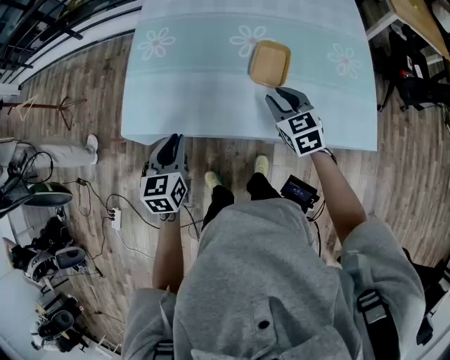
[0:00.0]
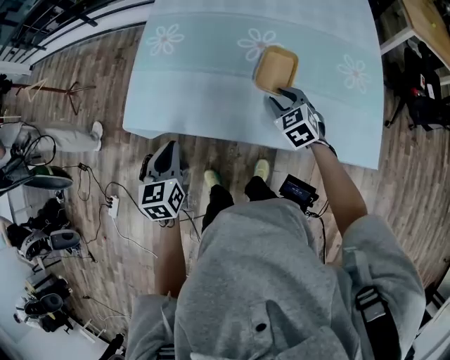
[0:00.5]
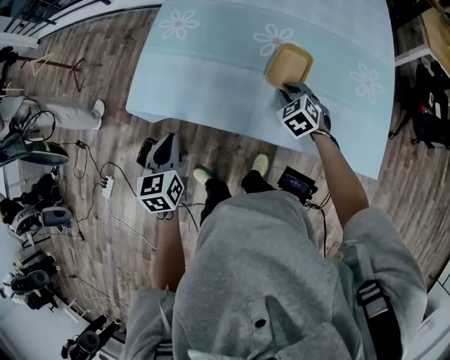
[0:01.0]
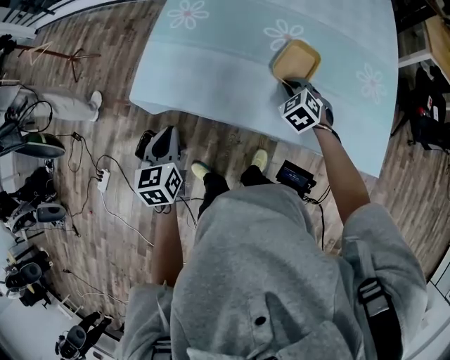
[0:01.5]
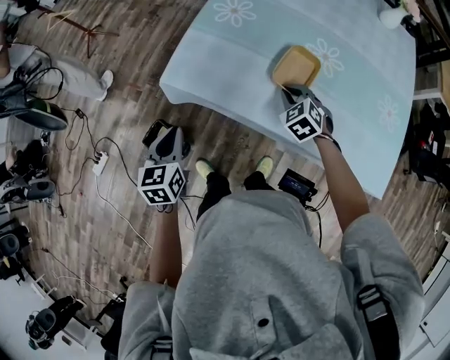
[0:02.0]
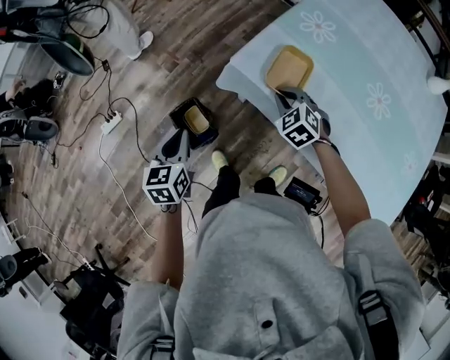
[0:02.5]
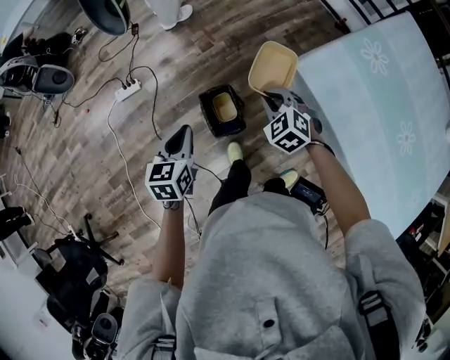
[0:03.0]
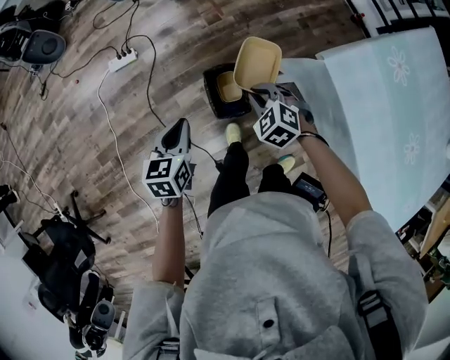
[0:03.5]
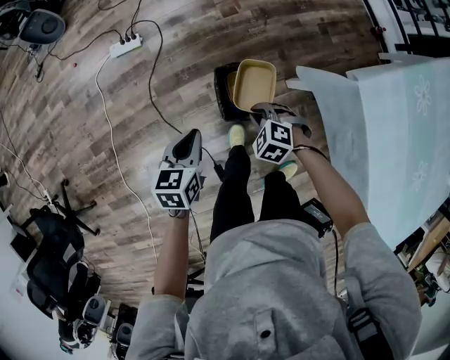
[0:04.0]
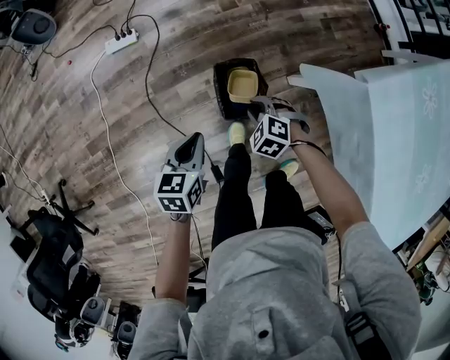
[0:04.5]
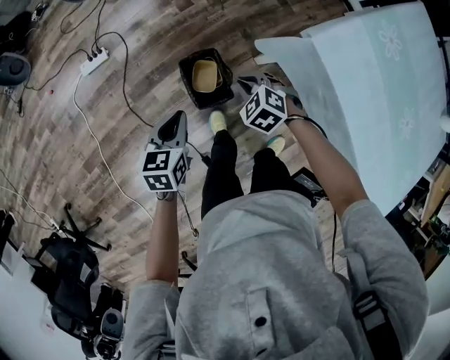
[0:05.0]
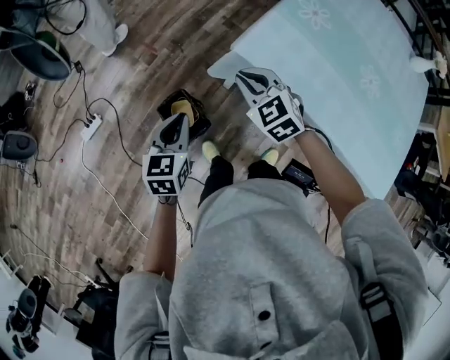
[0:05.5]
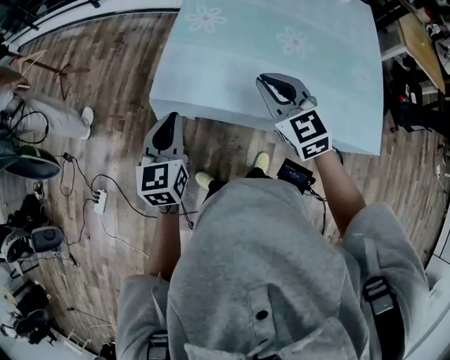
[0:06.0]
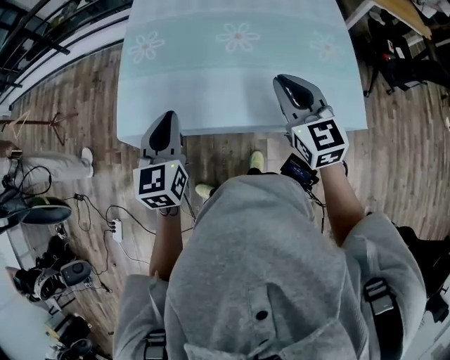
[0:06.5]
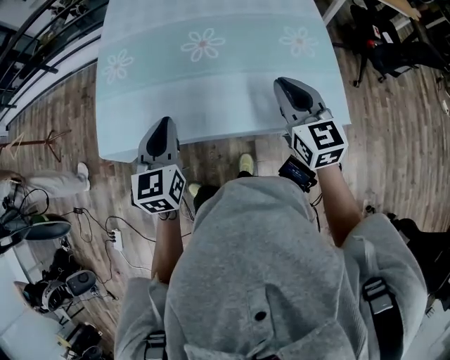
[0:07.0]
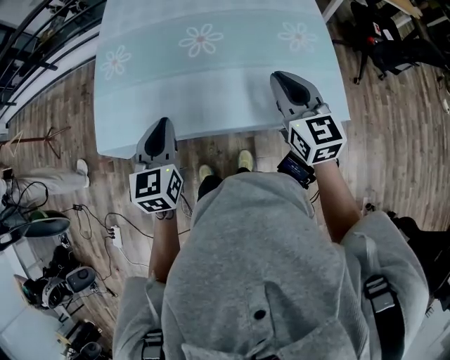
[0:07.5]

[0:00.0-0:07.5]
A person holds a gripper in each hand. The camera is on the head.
0:00.0 to 0:02.0: The left gripper moves to the left, approximately 15 cm, and swivels some 20 degrees; the right gripper travels to the left, forward and downward by roughly 15 cm, and rotates approximately 40 degrees.
0:02.0 to 0:04.0: The right gripper changes place by roughly 60 cm, and turns by about 70 degrees, while the left gripper moves some 40 cm, and changes its angle by approximately 40 degrees.
0:04.0 to 0:05.5: The left gripper ends up about 25 cm from where it was, and swivels approximately 30 degrees. Meanwhile the right gripper is displaced upward by some 25 cm, and changes its angle by roughly 50 degrees.
0:05.5 to 0:07.5: The two grippers travel together, roughly 50 cm. The right gripper changes its angle by roughly 70 degrees. The left gripper changes its angle by about 40 degrees.

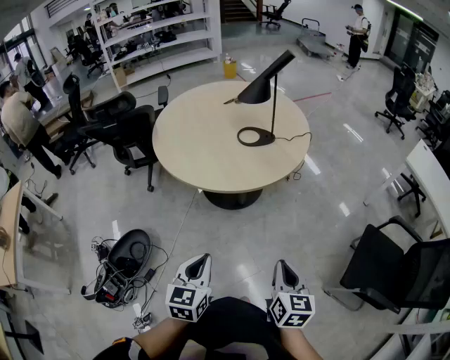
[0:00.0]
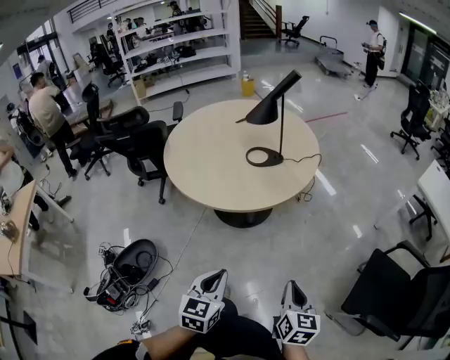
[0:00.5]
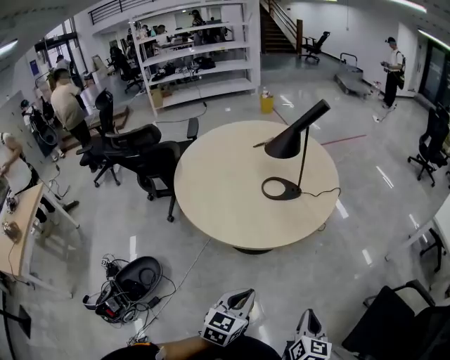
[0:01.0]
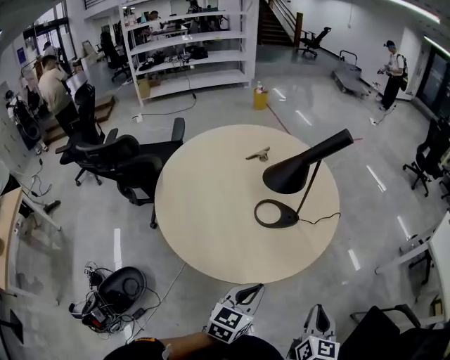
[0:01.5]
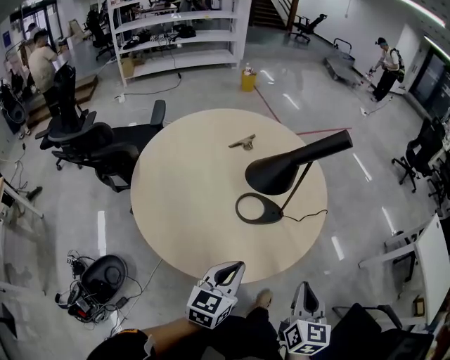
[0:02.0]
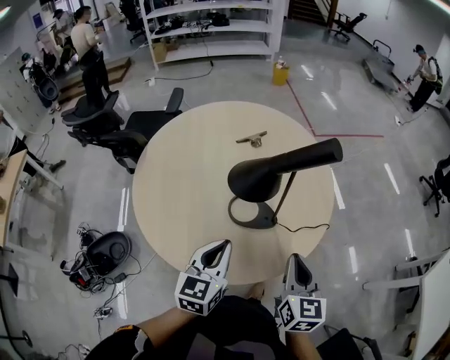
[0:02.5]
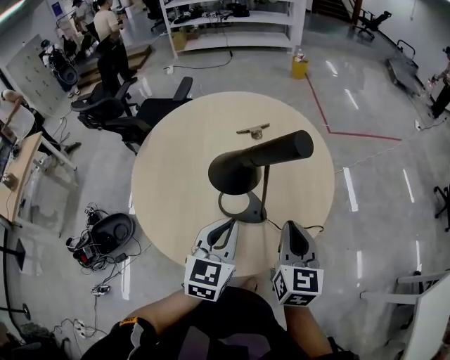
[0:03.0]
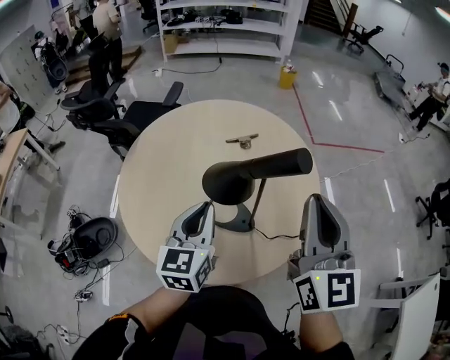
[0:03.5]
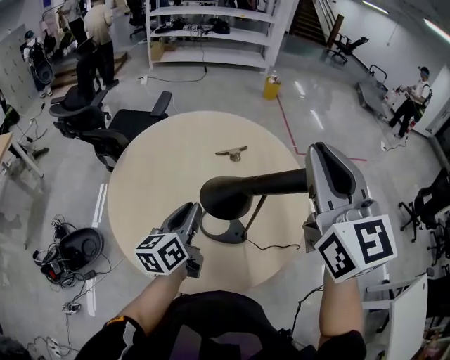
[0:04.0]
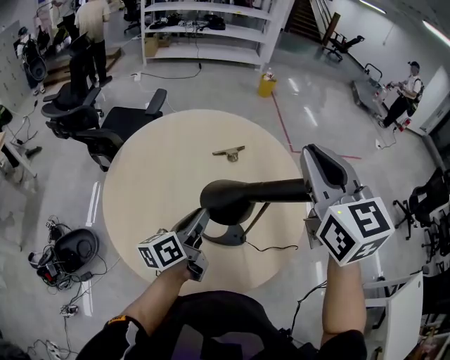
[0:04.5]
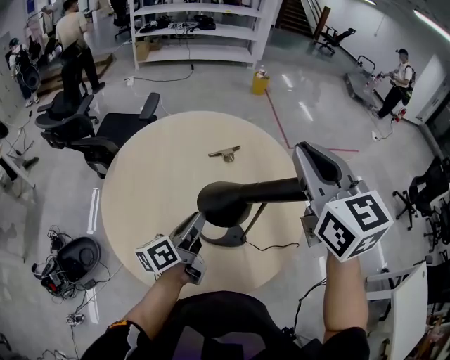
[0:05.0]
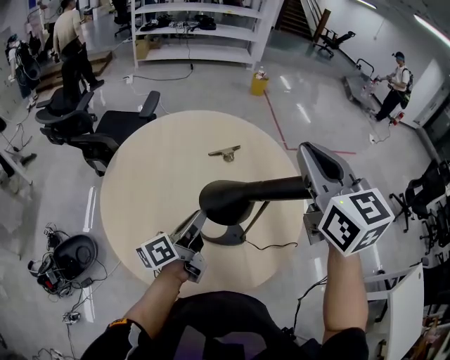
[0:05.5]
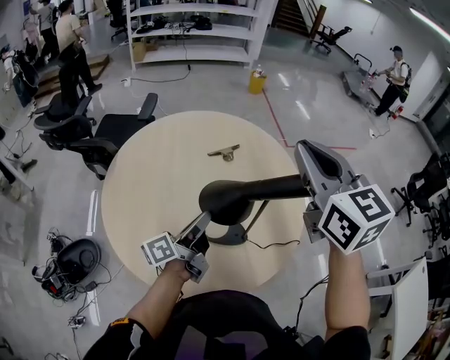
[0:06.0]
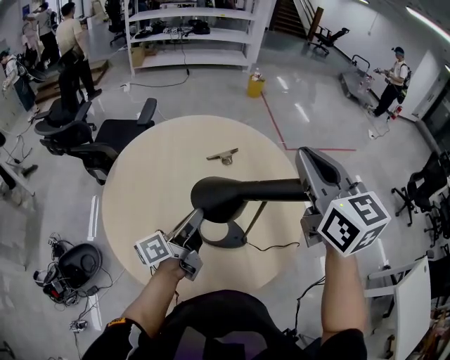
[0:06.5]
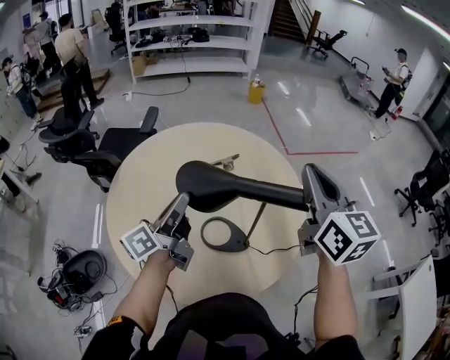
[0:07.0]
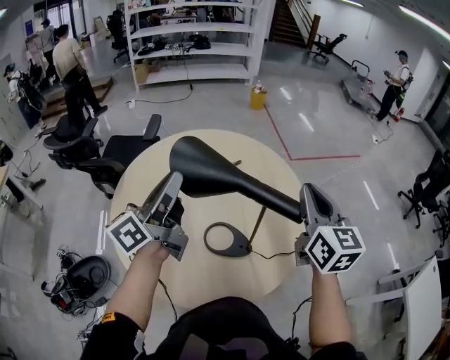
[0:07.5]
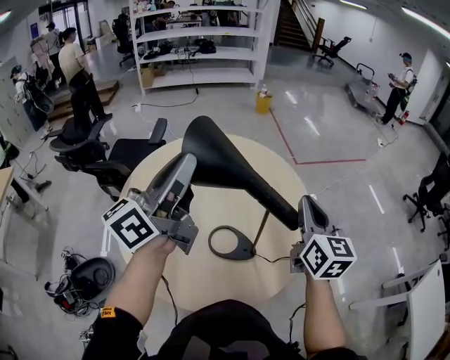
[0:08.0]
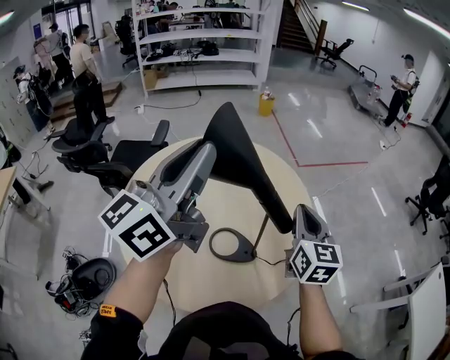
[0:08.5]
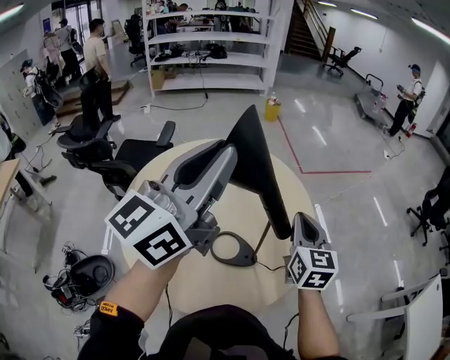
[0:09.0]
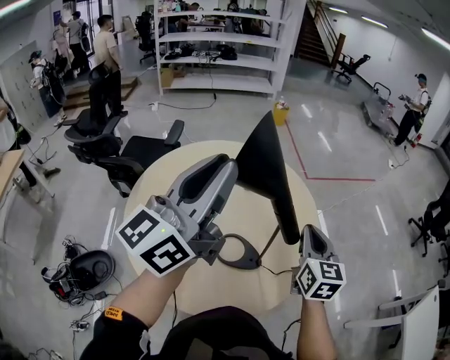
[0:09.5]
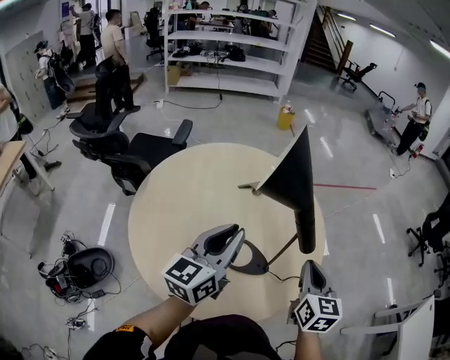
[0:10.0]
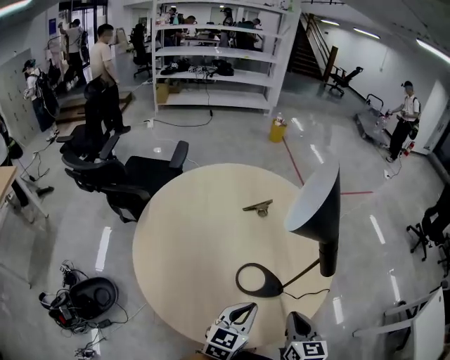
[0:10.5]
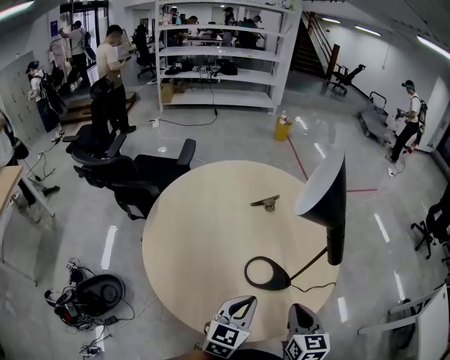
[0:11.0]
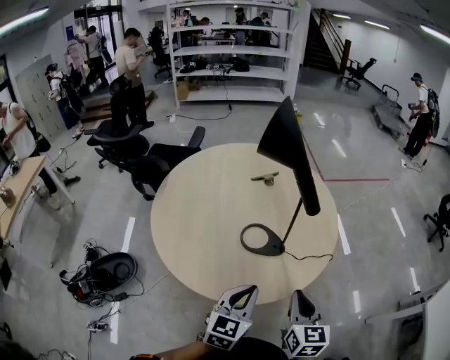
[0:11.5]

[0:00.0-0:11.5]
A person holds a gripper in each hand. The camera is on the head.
0:00.0 to 0:02.0: The pair of grippers is taken forward, some 50 cm.
0:02.0 to 0:04.0: The left gripper shifts by roughly 25 cm, and swivels roughly 40 degrees, while the right gripper heads upward, covering roughly 30 cm, and swivels roughly 50 degrees.
0:04.0 to 0:06.0: The left gripper moves about 5 cm, and swivels approximately 40 degrees, while the right gripper heads forward, covering approximately 5 cm.
0:06.0 to 0:07.5: The left gripper heads upward, covering about 20 cm, and turns by some 30 degrees; the right gripper moves to the right and downward, roughly 10 cm.
0:07.5 to 0:09.5: The right gripper is displaced downward by approximately 10 cm, while the left gripper goes about 15 cm upward and to the right, and changes its angle by about 30 degrees.
0:09.5 to 0:11.5: The right gripper goes approximately 30 cm backward. Meanwhile the left gripper shifts some 40 cm downward and backward, and tips its fingers downward by approximately 40 degrees.

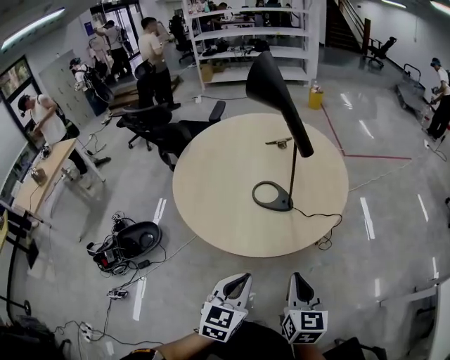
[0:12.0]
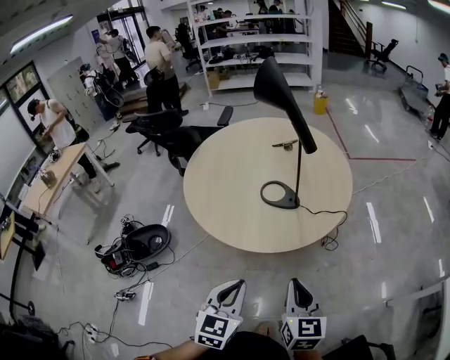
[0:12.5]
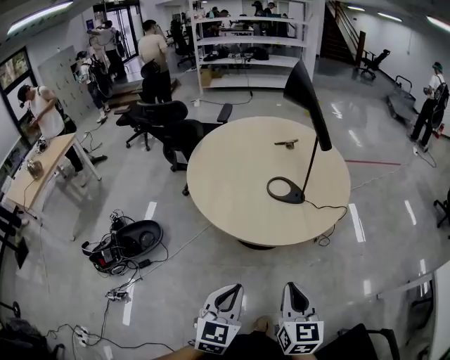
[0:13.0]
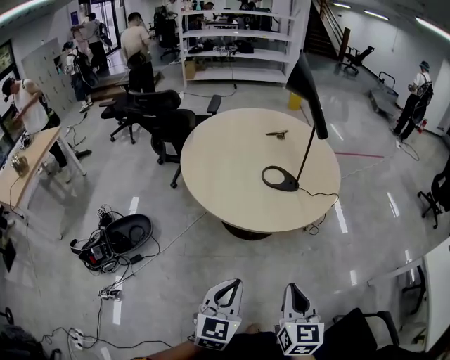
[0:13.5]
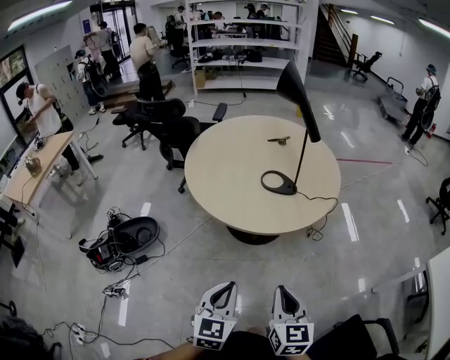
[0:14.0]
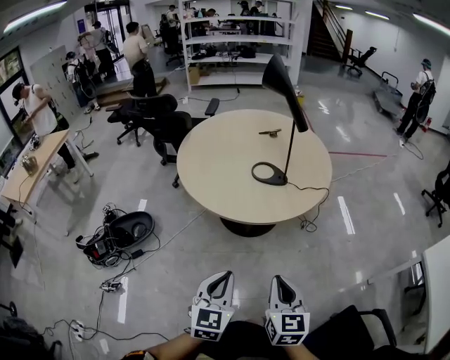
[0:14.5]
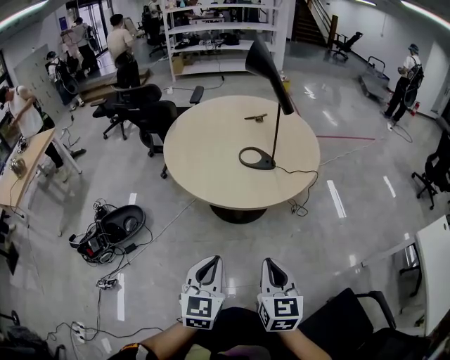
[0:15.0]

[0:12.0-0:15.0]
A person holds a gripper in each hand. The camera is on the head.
0:12.0 to 0:13.5: The two grippers go some 25 cm backward and to the left.
0:13.5 to 0:15.0: The grippers both shift to the right by about 5 cm.

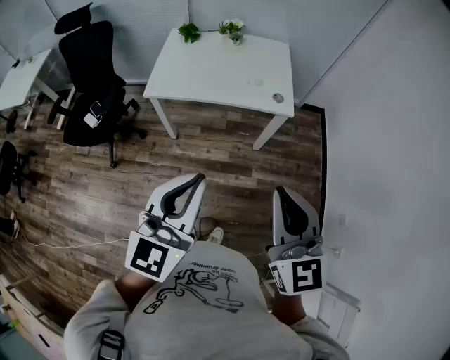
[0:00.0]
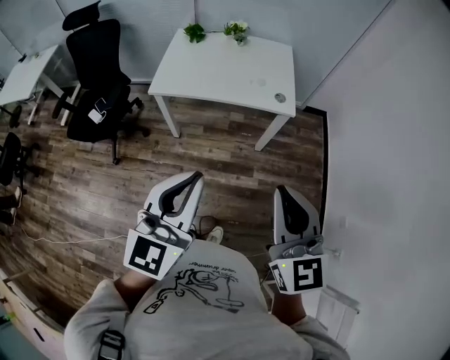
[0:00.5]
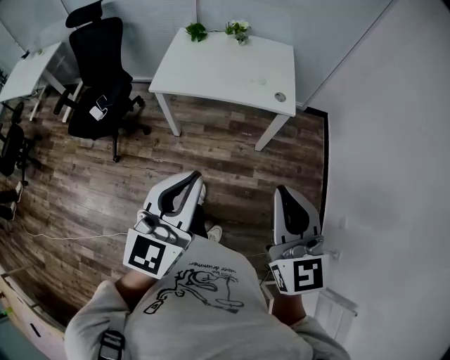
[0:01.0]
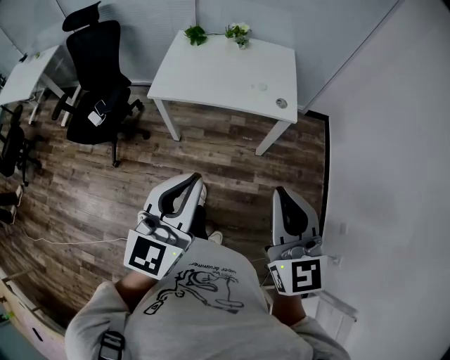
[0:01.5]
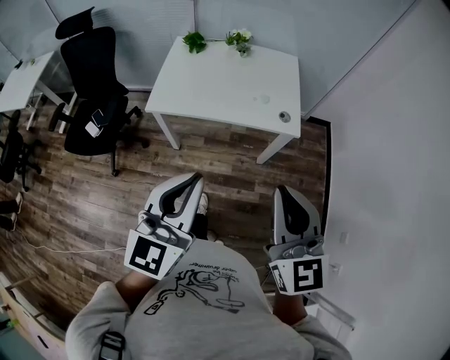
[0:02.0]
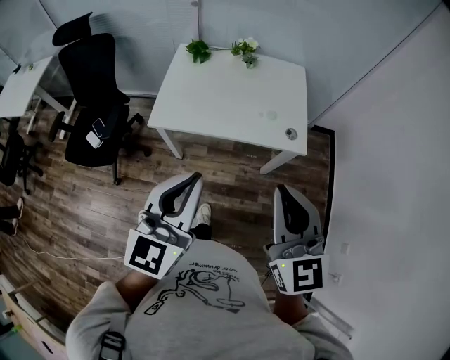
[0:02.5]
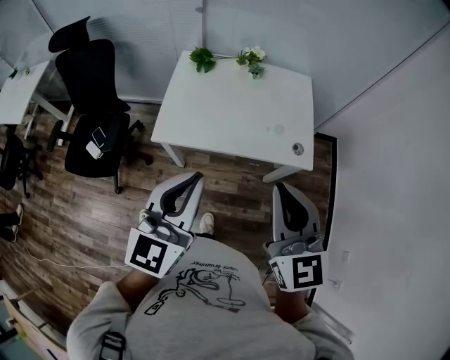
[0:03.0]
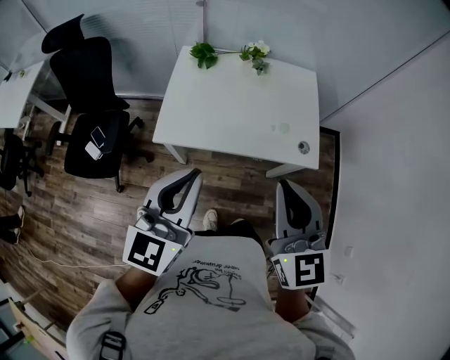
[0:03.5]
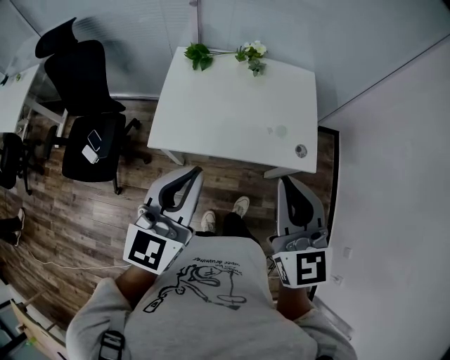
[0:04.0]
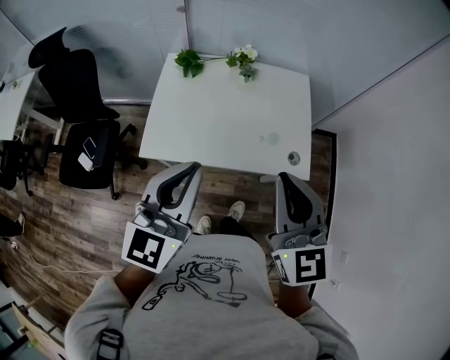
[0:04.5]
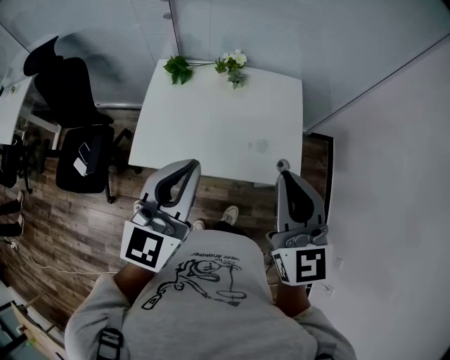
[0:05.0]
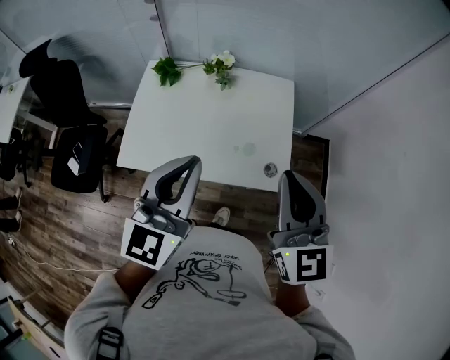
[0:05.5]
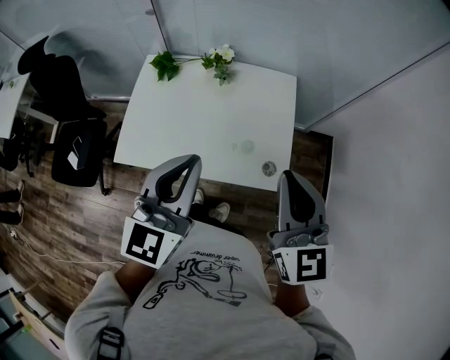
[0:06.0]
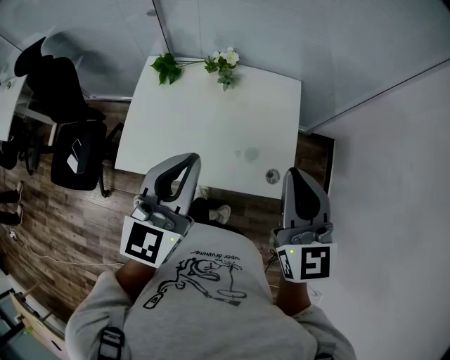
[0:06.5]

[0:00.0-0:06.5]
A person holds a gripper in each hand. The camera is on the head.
0:00.0 to 0:02.0: The two grippers go approximately 10 cm forward.
0:02.0 to 0:04.5: The grippers both shift forward by approximately 30 cm.
0:04.5 to 0:06.5: Both grippers travel together forward and to the right, some 20 cm.
